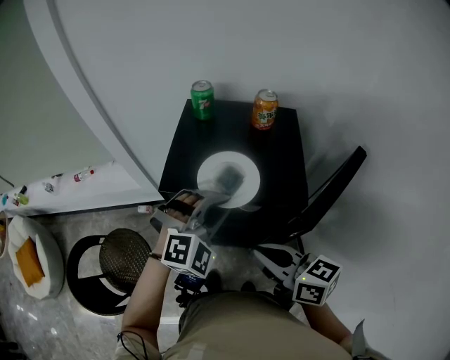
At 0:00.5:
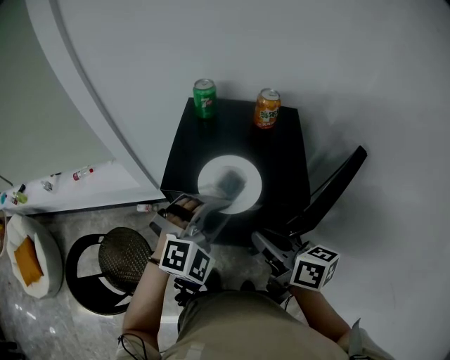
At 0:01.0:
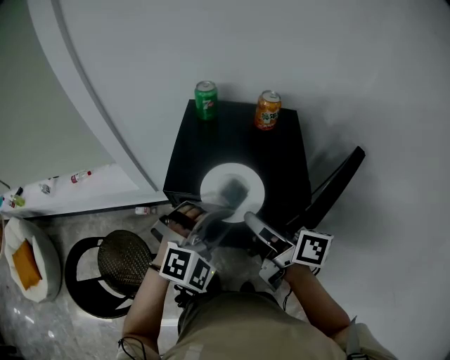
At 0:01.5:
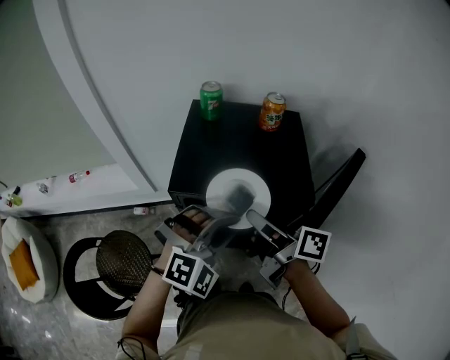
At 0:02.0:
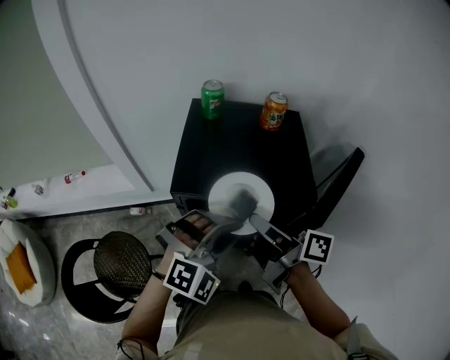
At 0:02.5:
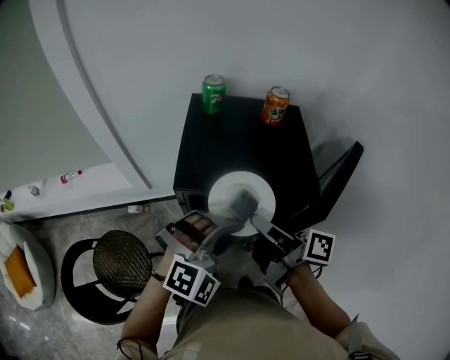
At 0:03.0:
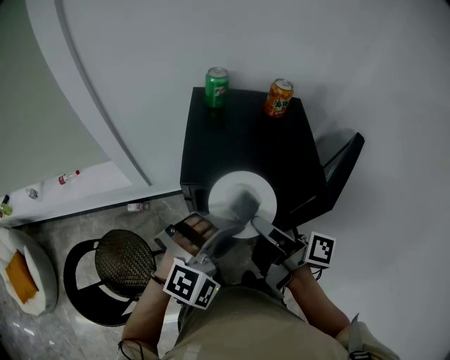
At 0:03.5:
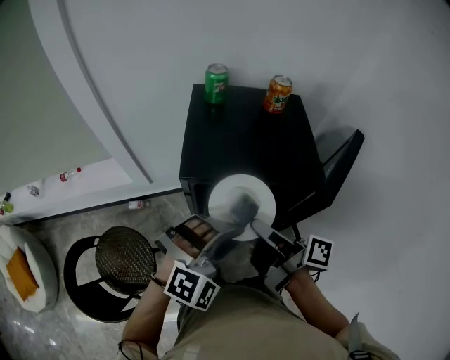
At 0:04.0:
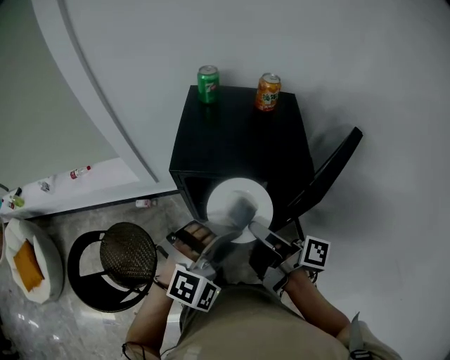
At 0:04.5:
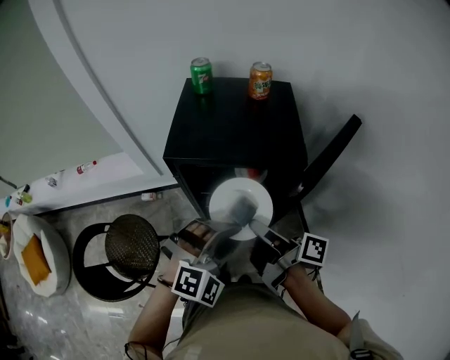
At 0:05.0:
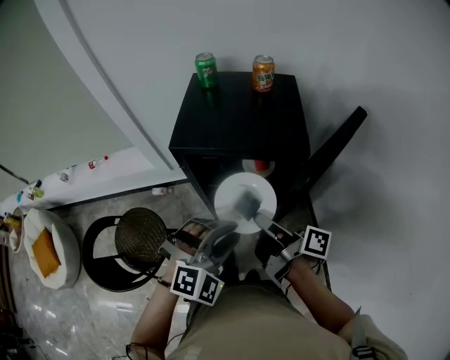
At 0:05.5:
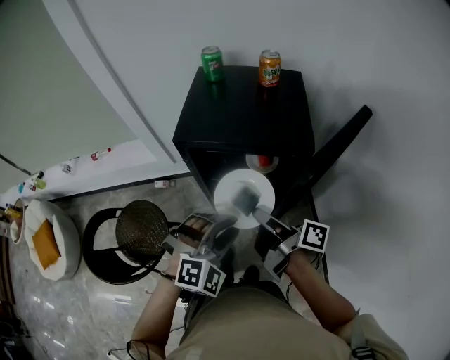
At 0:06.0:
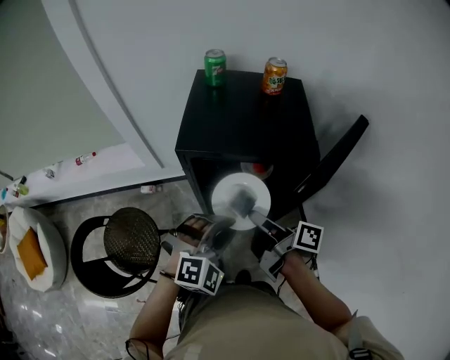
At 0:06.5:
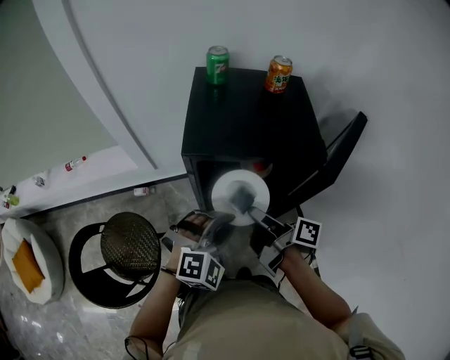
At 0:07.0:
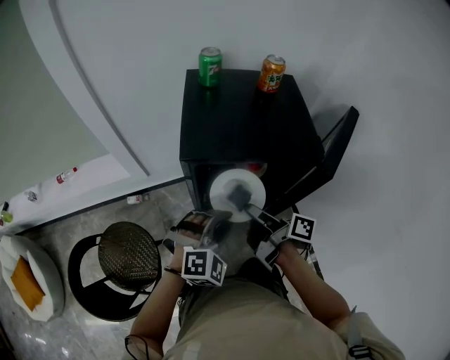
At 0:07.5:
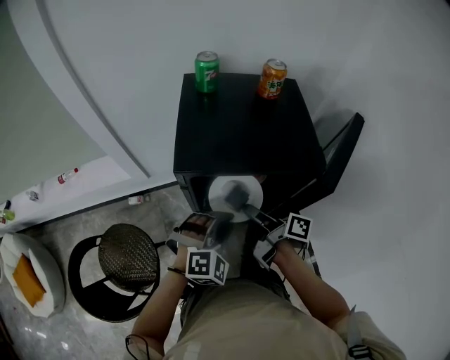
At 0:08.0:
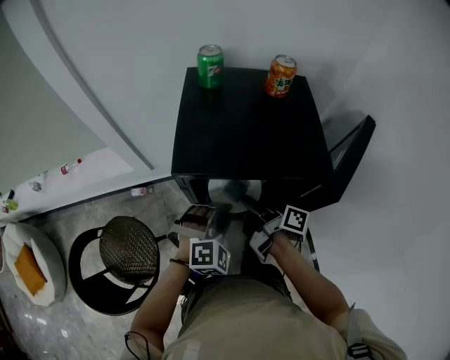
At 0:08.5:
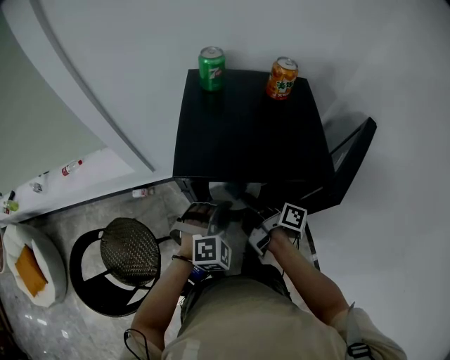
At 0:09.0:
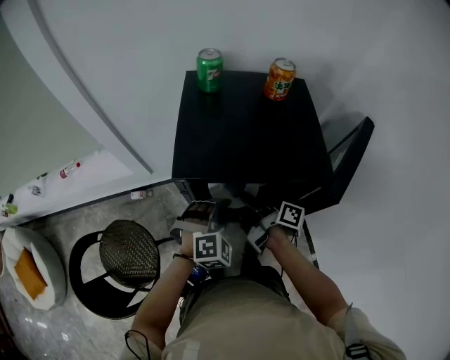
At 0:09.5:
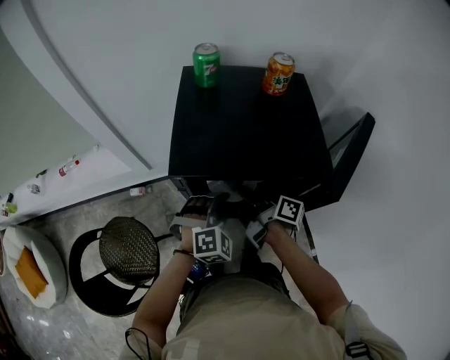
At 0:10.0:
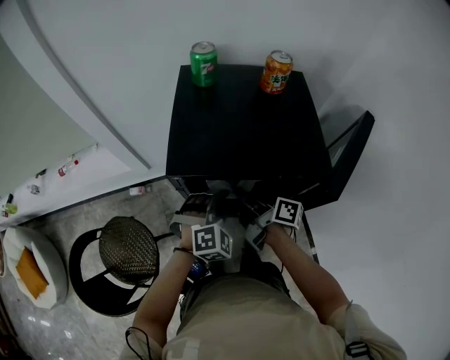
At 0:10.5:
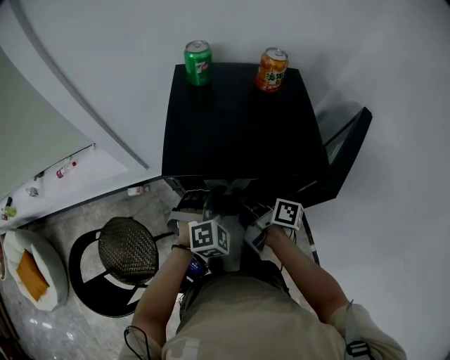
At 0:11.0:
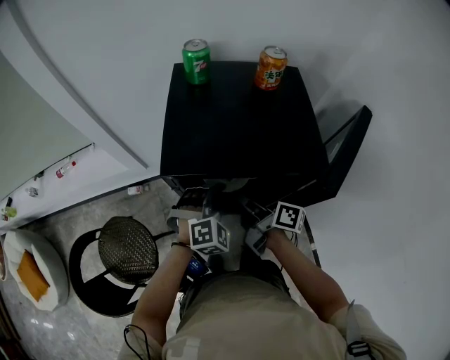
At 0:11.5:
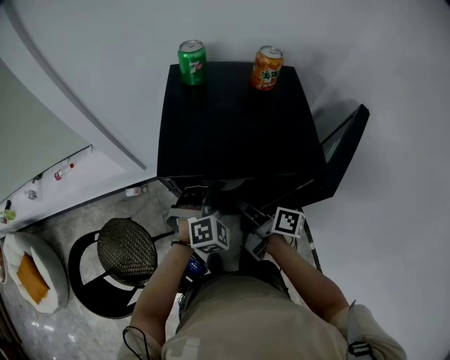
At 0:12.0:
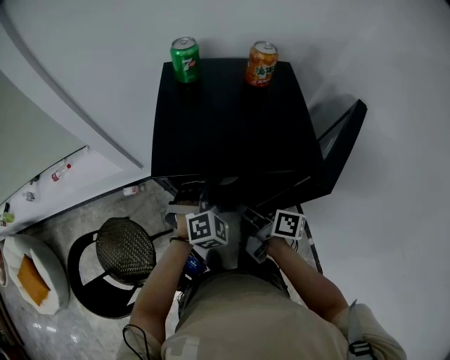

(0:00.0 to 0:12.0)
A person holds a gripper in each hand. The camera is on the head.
0:00.0 - 0:02.0: The right gripper is displaced forward by some 10 cm, and changes its angle by about 40 degrees; the left gripper moves backward, roughly 5 cm.
0:02.0 - 0:04.0: The two grippers go about 5 cm backward.
0:04.0 - 0:06.0: The grippers both shift downward by about 5 cm.
0:06.0 - 0:08.0: Both grippers move forward and downward, roughly 15 cm.
0:08.0 - 0:10.0: There are only small adjustments of the grippers.
0:10.0 - 0:12.0: The grippers make only small movements.

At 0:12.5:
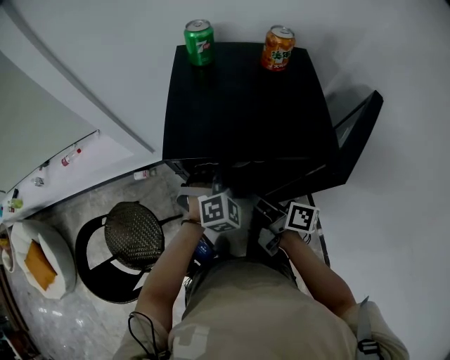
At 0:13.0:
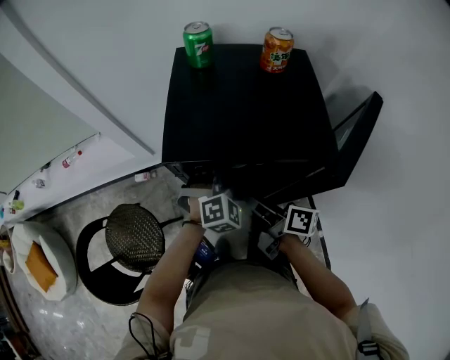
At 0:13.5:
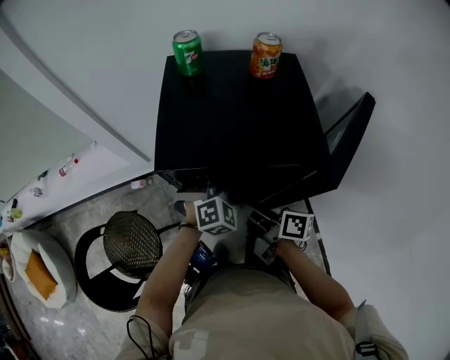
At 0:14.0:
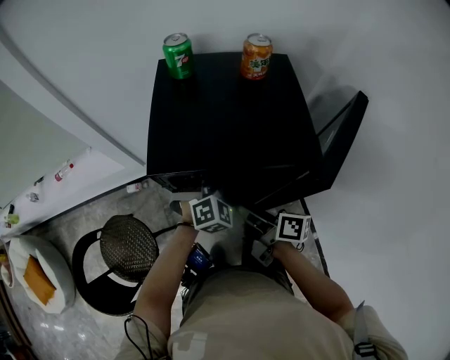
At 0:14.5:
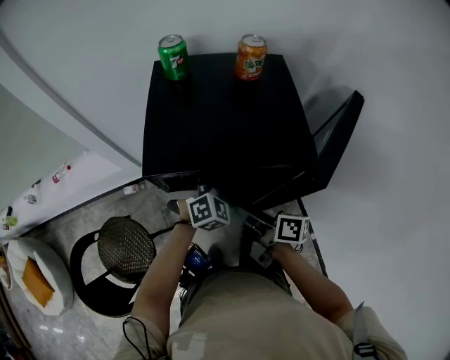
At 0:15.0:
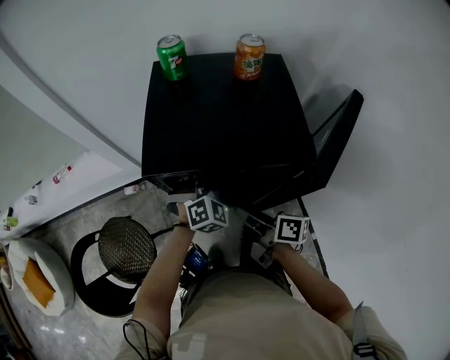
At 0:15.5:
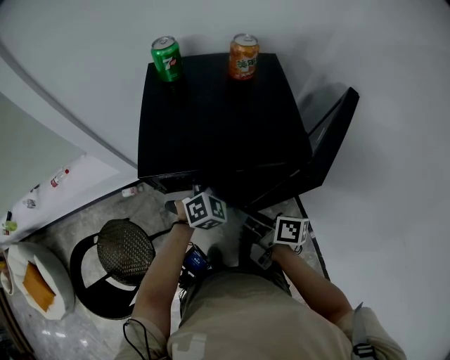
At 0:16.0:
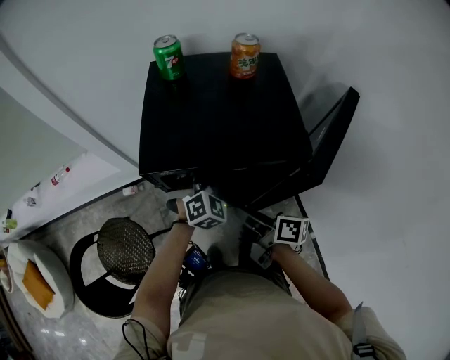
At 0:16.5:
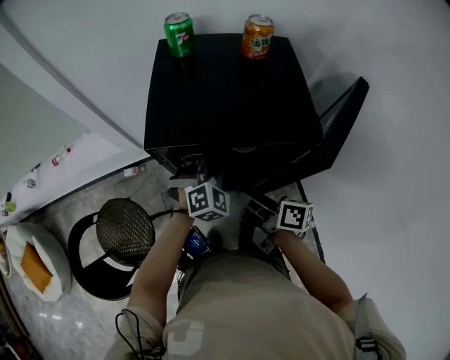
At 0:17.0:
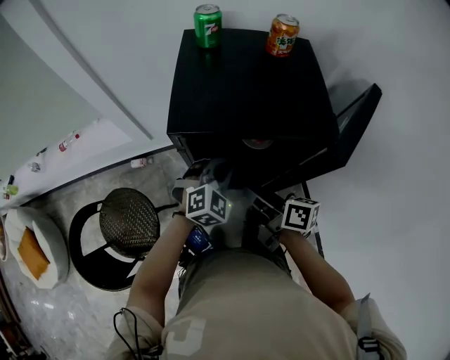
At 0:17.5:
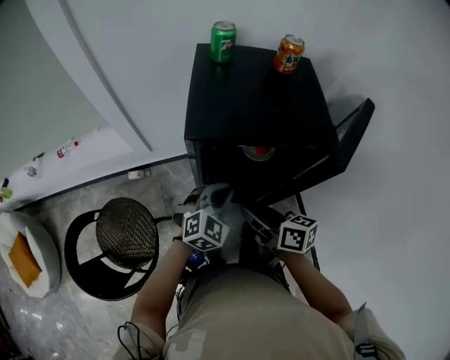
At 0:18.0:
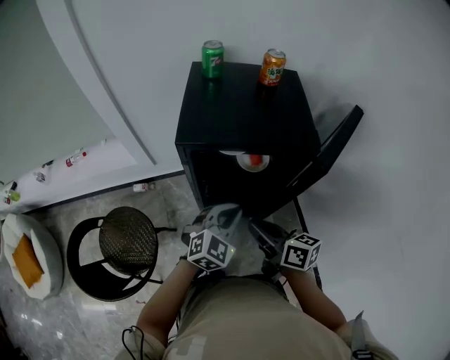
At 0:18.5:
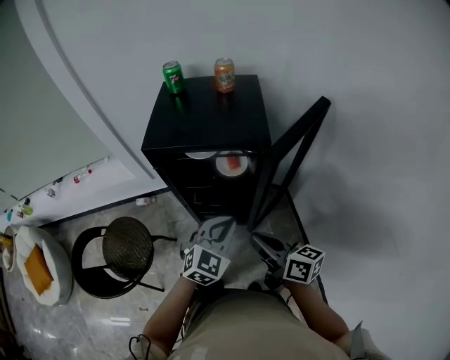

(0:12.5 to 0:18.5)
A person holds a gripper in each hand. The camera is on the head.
0:12.5 - 0:16.5: The grippers stay close to where they were, moving slightly.
0:16.5 - 0:18.5: The right gripper is displaced backward and to the right by some 20 cm, and rotates approximately 20 degrees. The left gripper is displaced backward by approximately 20 cm, rotates about 30 degrees, and closes.

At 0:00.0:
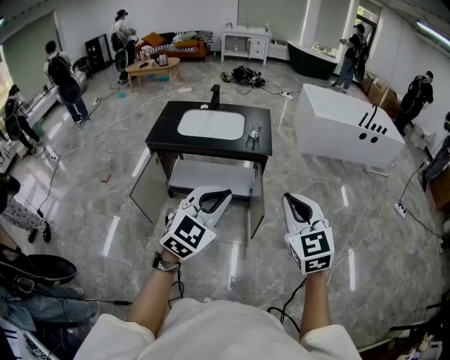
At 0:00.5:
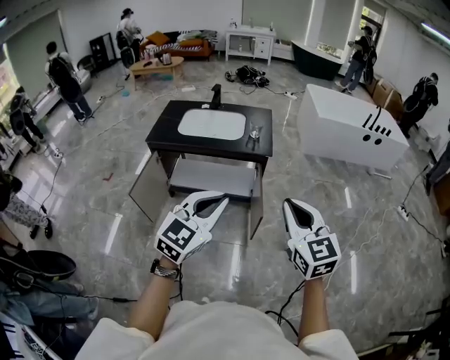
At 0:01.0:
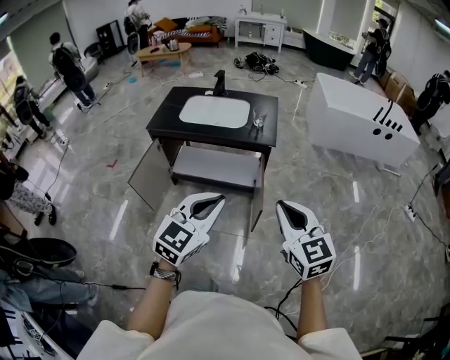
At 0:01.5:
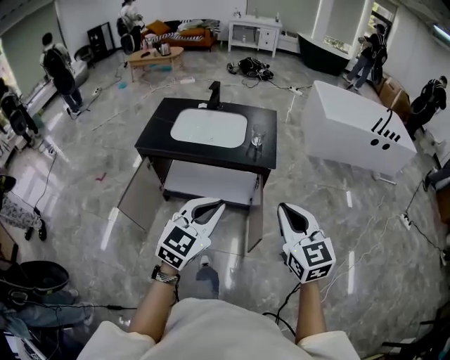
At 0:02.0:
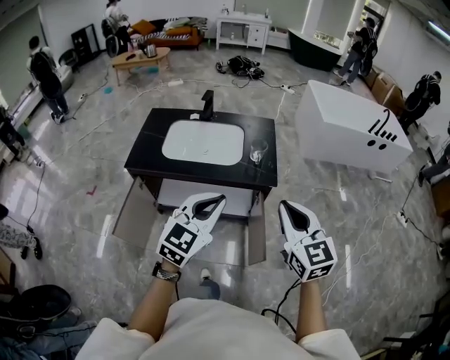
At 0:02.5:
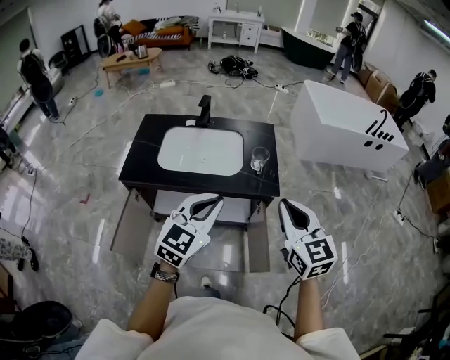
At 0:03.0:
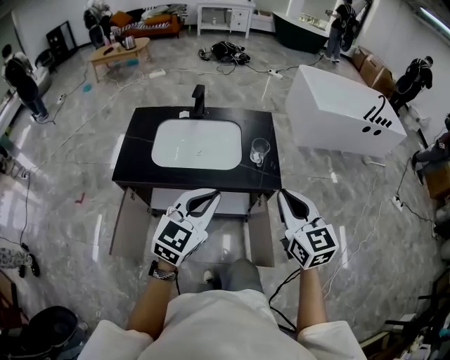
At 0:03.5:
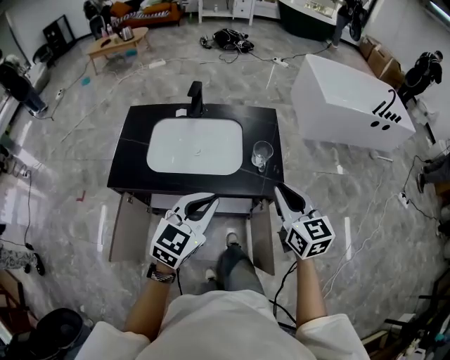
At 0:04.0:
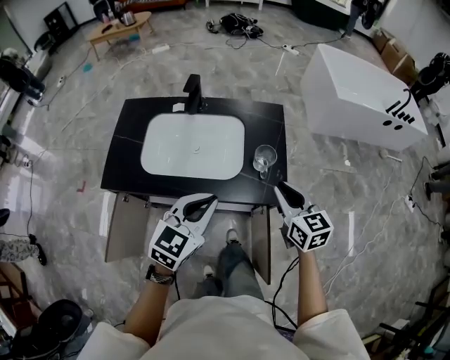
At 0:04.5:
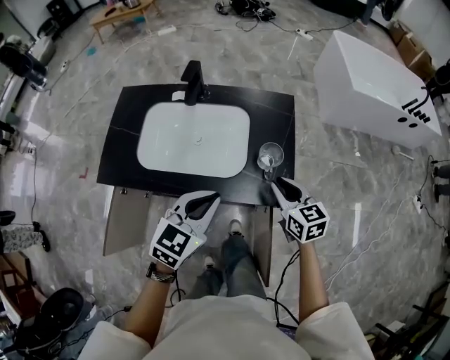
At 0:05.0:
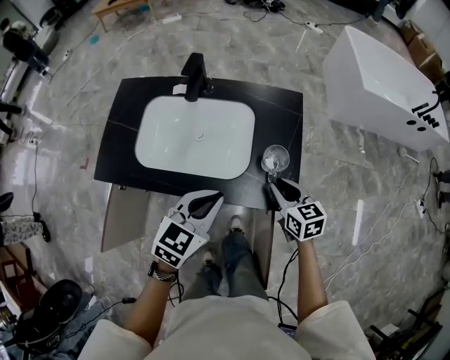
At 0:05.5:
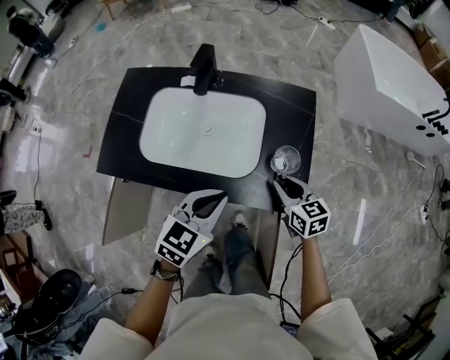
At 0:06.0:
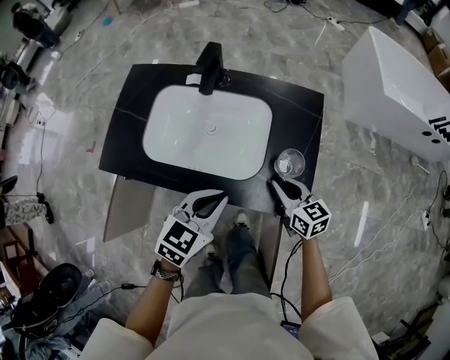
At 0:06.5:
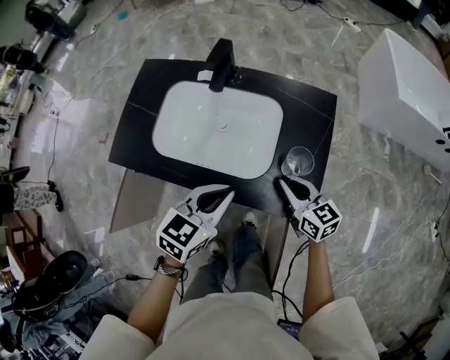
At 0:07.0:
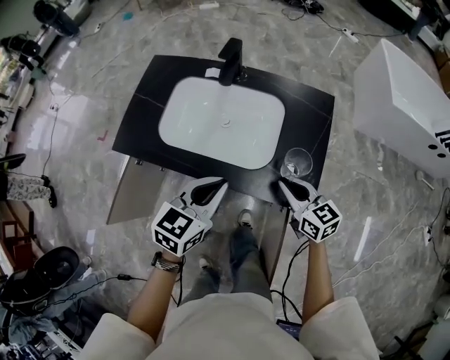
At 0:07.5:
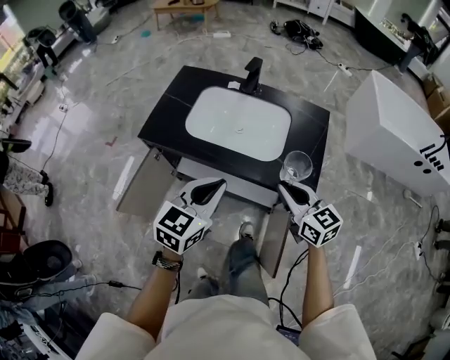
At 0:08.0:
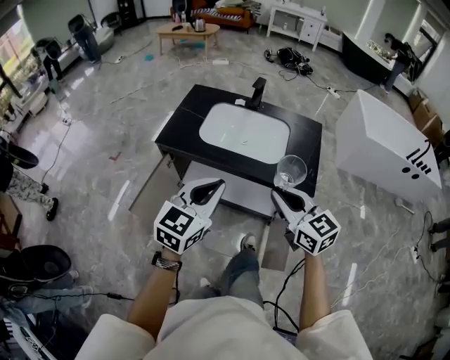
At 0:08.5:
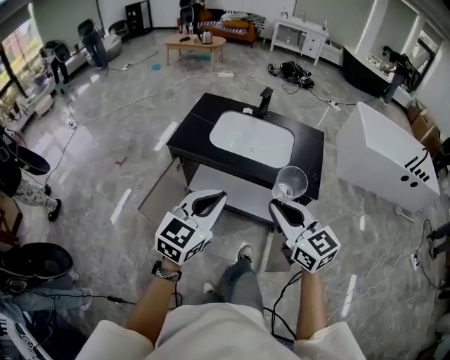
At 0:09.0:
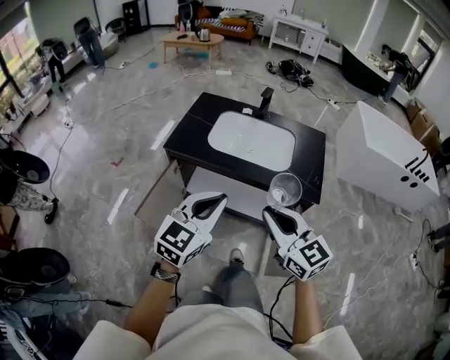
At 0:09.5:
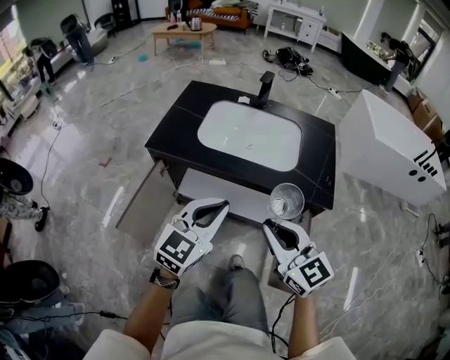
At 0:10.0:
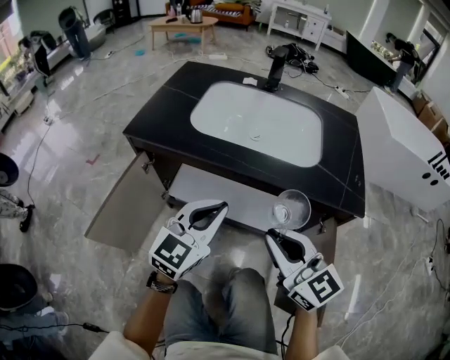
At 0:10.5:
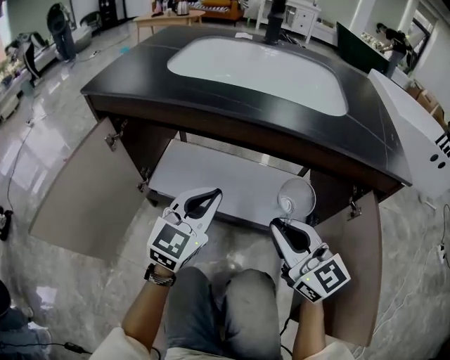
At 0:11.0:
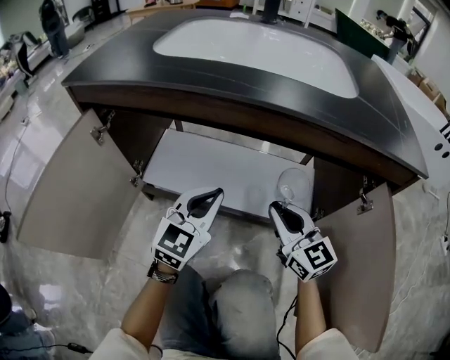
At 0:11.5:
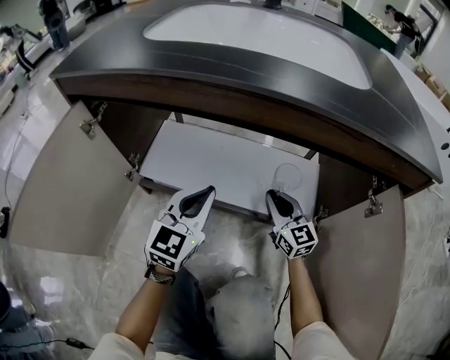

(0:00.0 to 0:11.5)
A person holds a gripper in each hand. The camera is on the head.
0:00.0 - 0:02.0: Both grippers move forward, approximately 30 cm.
0:02.0 - 0:04.0: Both grippers move forward and downward, approximately 30 cm.
0:04.0 - 0:06.0: The grippers both shift downward and forward by roughly 15 cm. The right gripper changes its angle by about 20 degrees.
0:06.0 - 0:07.5: The left gripper moves backward, to the left and upward, roughly 20 cm. Meanwhile the right gripper goes about 20 cm upward, backward and to the left.
0:07.5 - 0:09.5: The right gripper goes some 20 cm to the left and backward; the left gripper travels to the left and downward by some 10 cm, and travels backward and back again, approximately 15 cm each way.
0:09.5 - 0:11.5: Both grippers move downward, about 50 cm.
